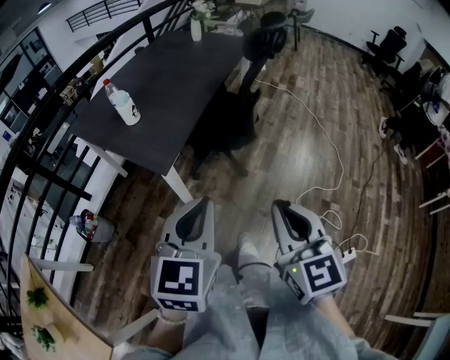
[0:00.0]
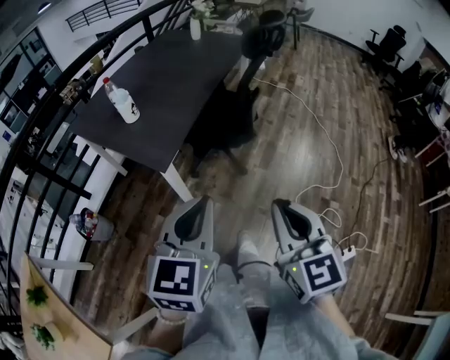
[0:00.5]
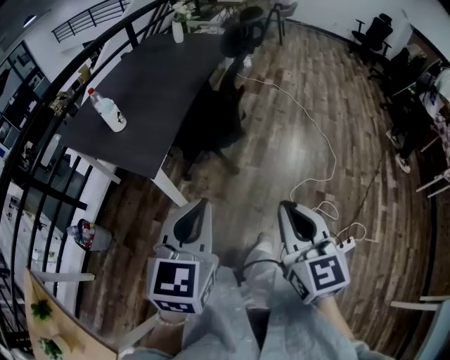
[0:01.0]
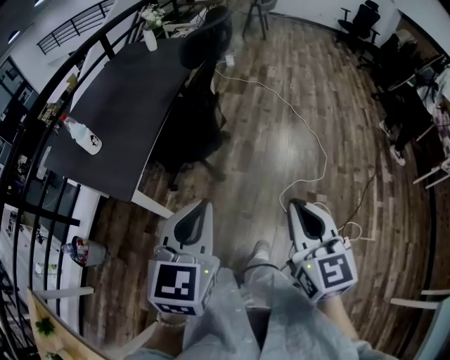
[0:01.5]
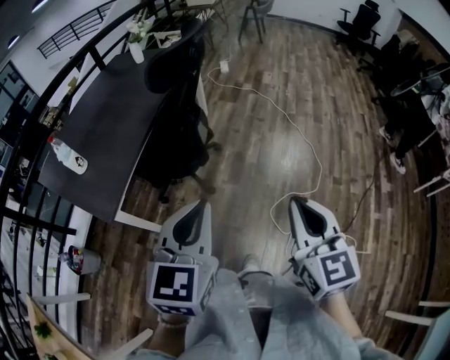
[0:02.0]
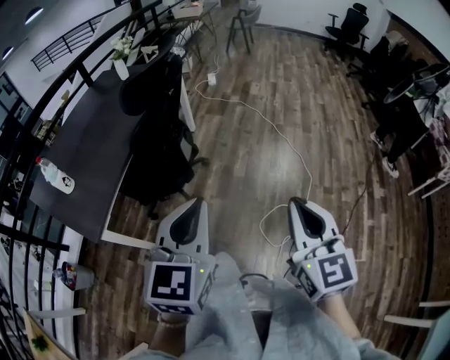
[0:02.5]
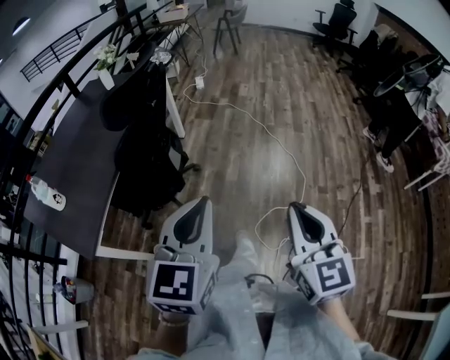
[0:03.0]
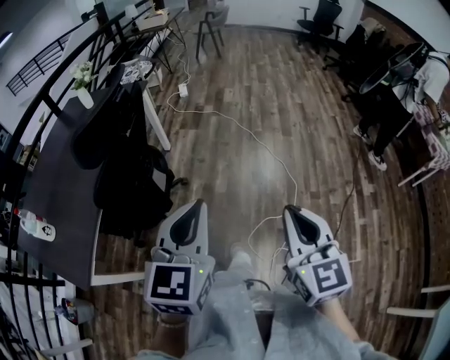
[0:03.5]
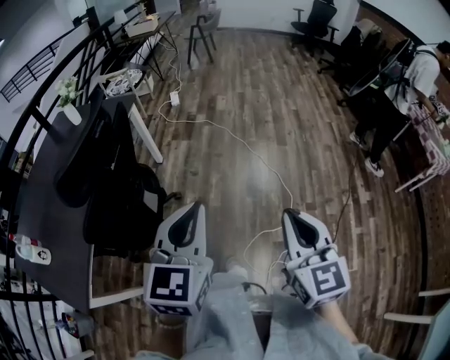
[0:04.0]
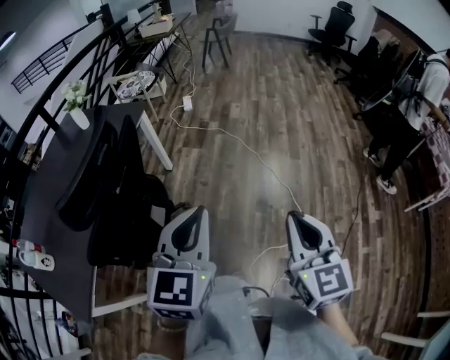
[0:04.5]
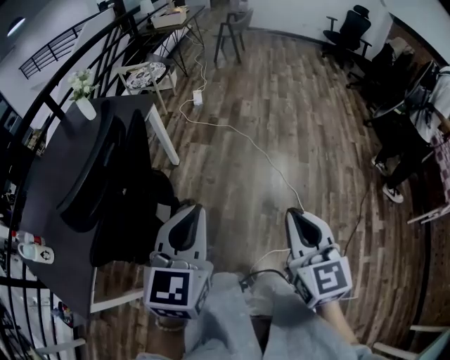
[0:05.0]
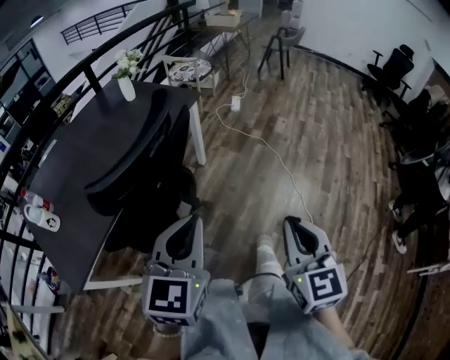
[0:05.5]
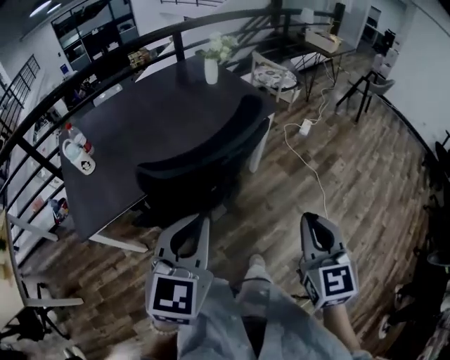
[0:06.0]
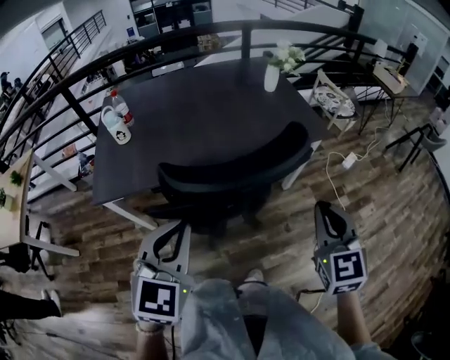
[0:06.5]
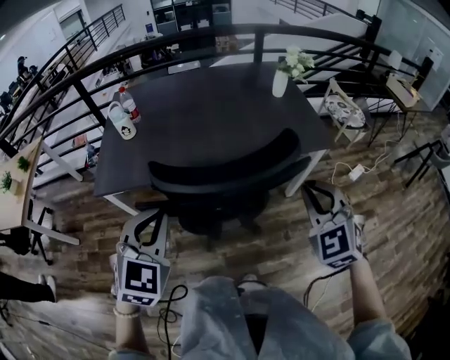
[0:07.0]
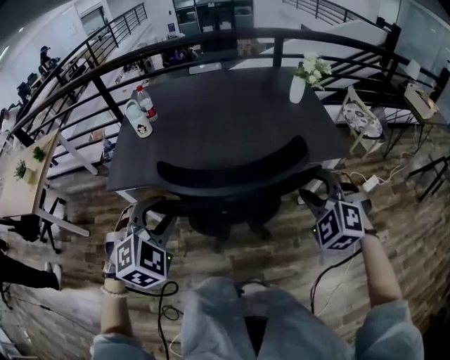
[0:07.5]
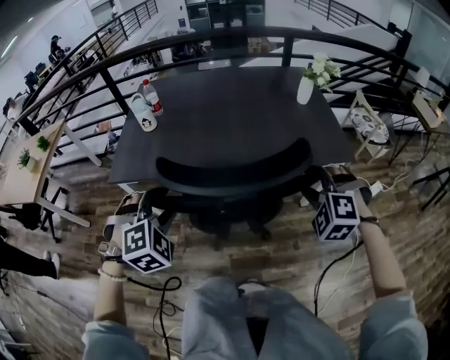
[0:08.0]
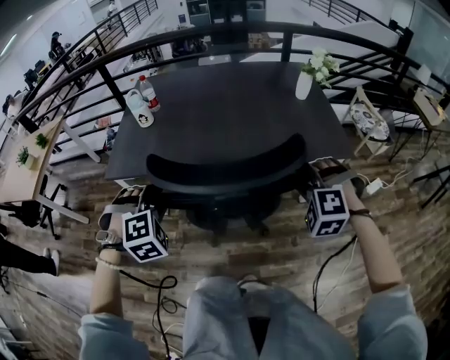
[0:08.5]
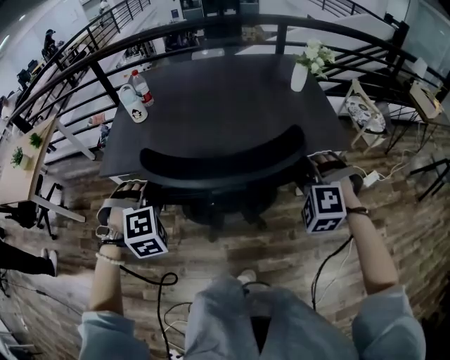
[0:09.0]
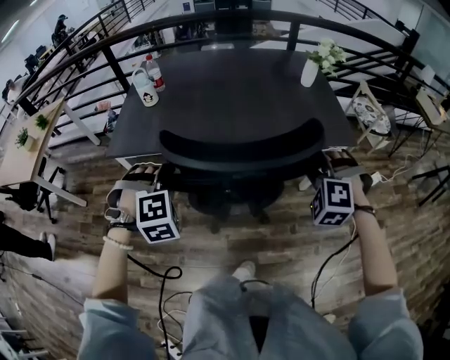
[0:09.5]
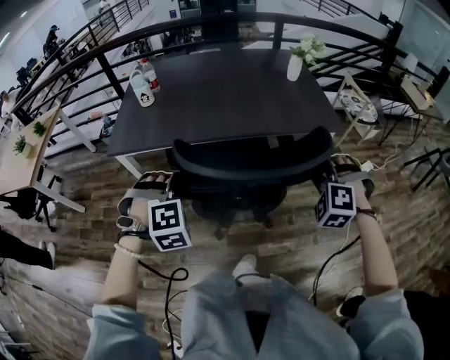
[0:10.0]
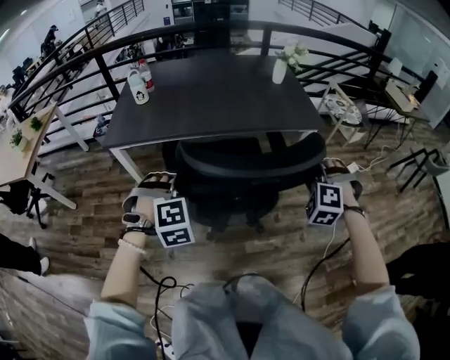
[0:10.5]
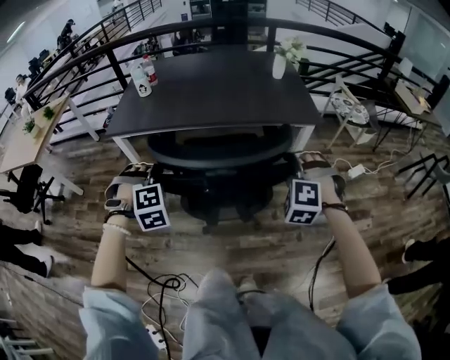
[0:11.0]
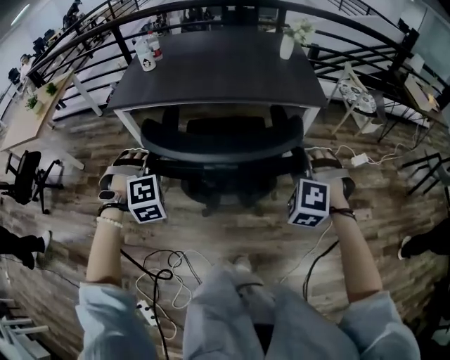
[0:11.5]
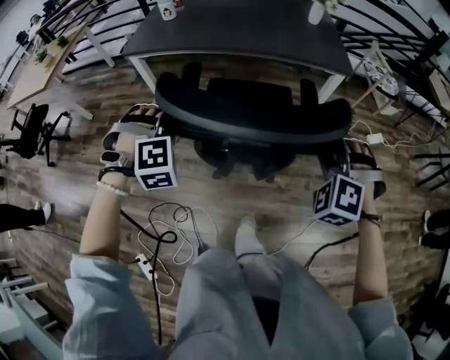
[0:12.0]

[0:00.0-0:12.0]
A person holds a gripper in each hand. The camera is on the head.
0:00.0 to 0:02.0: The grippers both shift to the right and forward by about 30 cm.
0:02.0 to 0:04.0: Both grippers travel together forward and to the right, approximately 30 cm.
0:04.0 to 0:06.0: The right gripper ends up roughly 35 cm from where it was, and rotates roughly 40 degrees. The left gripper changes place by roughly 20 cm, and rotates approximately 40 degrees.
0:06.0 to 0:08.0: The left gripper ends up roughly 15 cm from where it was, points its fingers approximately 30 degrees further downward, and opens up. The right gripper changes place by approximately 30 cm, rolls counterclockwise, seen from behind, by approximately 80 degrees, and opens its fingers.
0:08.0 to 0:10.0: The grippers both shift backward by about 10 cm.
0:10.0 to 0:12.0: Both grippers move backward, about 20 cm.

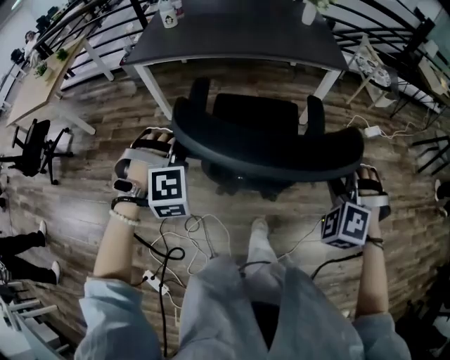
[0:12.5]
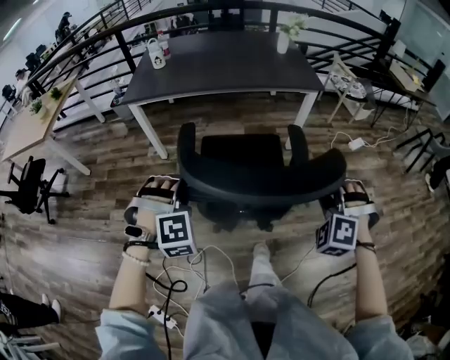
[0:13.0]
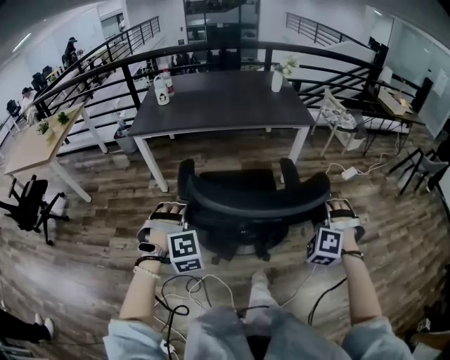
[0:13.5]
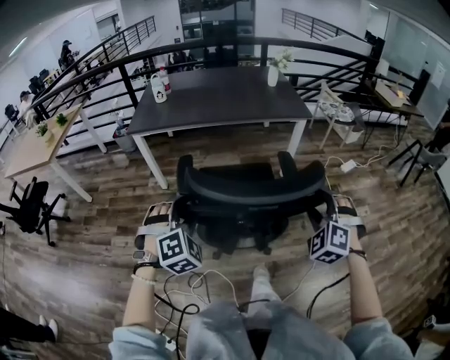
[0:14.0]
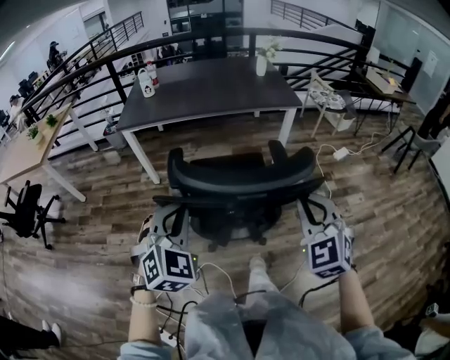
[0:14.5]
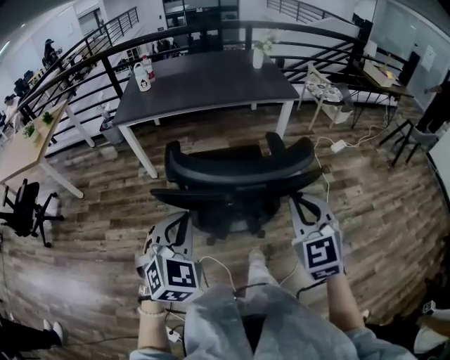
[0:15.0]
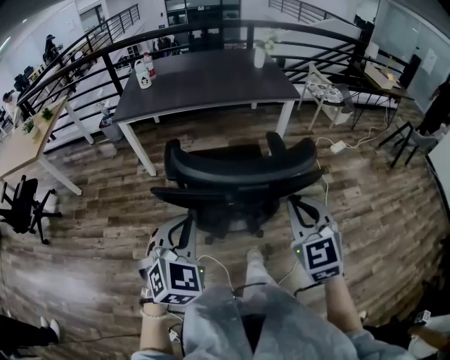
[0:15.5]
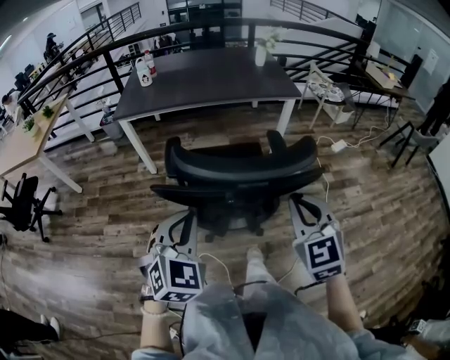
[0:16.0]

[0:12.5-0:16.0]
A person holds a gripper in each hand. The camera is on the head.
0:12.5 to 0:14.5: Both grippers move backward and upward, about 15 cm. The left gripper twists approximately 40 degrees counterclockwise, seen from behind, and closes up. The right gripper rolls clockwise, seen from behind, by roughly 40 degrees, and closes up.
0:14.5 to 0:16.0: The grippers make only small movements.

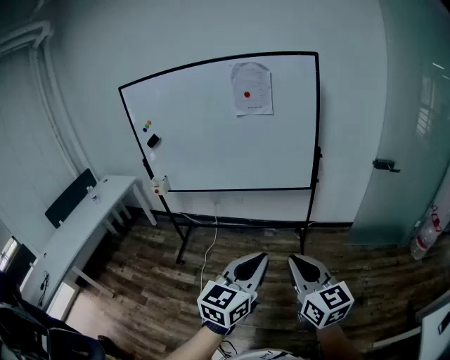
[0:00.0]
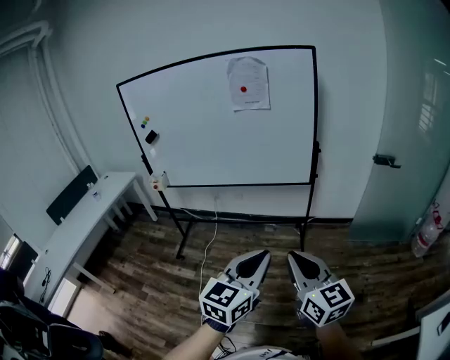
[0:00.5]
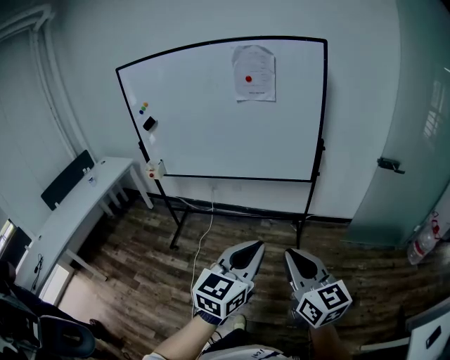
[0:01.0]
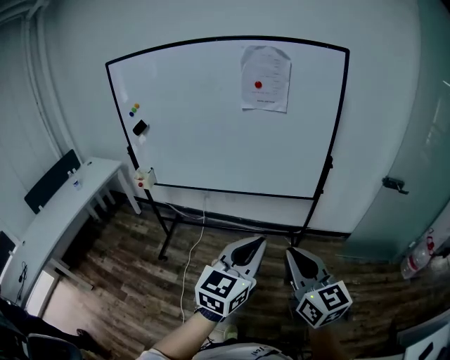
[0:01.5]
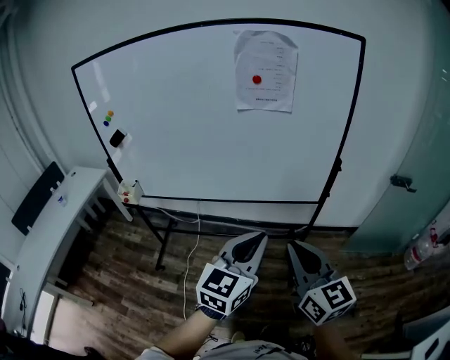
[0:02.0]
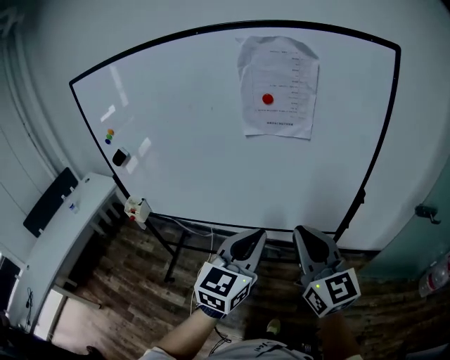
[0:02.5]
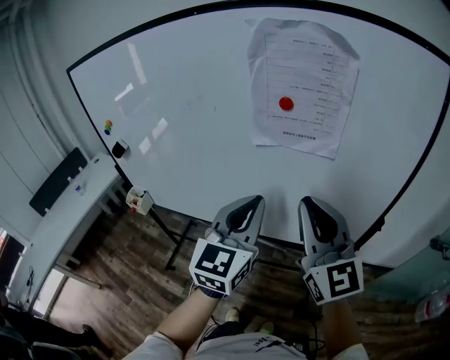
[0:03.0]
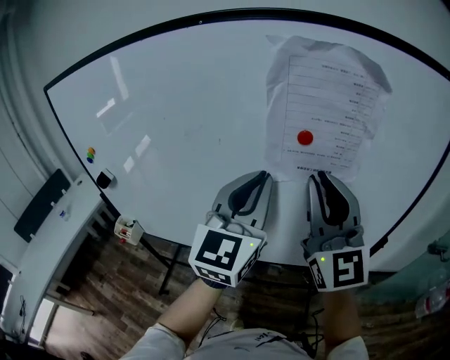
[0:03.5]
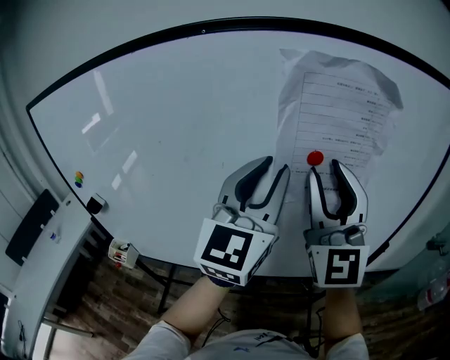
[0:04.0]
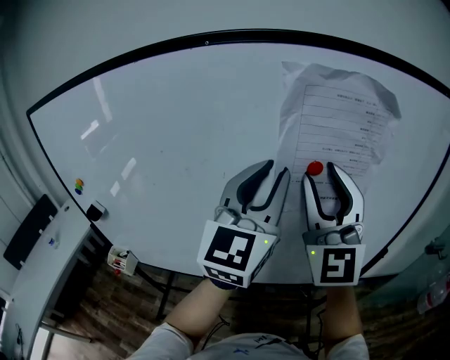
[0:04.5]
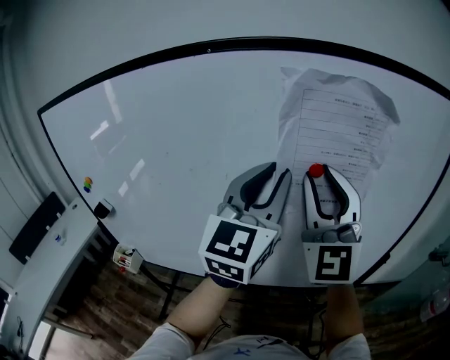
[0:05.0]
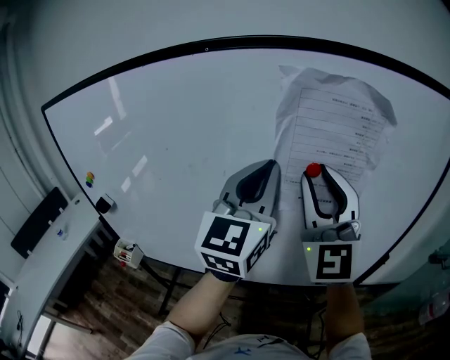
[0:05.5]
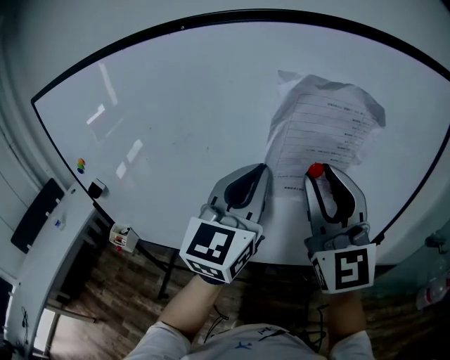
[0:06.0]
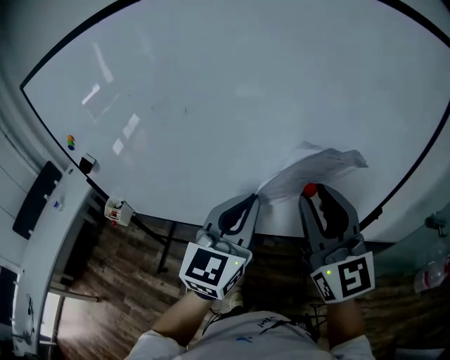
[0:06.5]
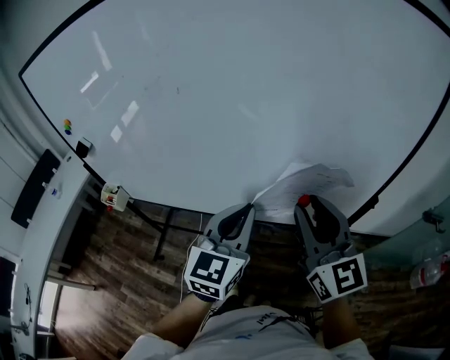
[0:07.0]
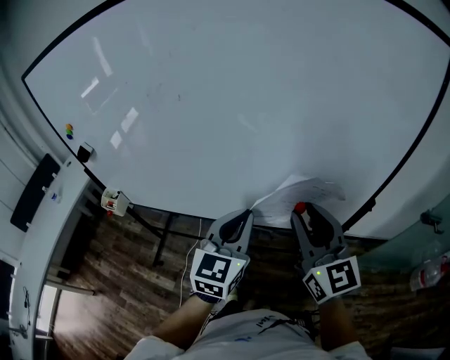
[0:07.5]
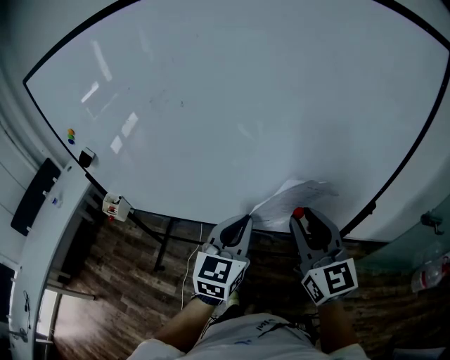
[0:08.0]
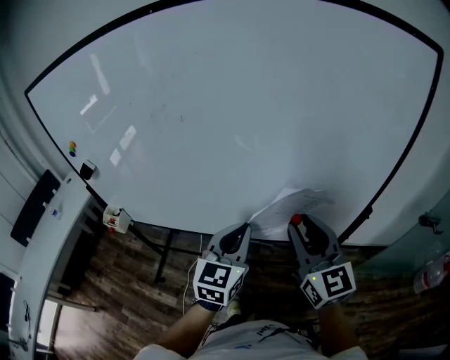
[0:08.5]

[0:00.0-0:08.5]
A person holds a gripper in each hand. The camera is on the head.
0:00.0 to 0:02.0: The two grippers go roughly 35 cm forward.
0:02.0 to 0:04.0: The two grippers travel together, forward, some 40 cm. Both grippers travel together upward, roughly 20 cm. The right gripper turns by about 50 degrees, and opens. Meanwhile the left gripper rotates approximately 30 degrees, and opens.
0:04.0 to 0:06.5: The left gripper moves downward and backward, roughly 15 cm, while the right gripper travels downward, backward and to the right by roughly 10 cm, and changes its angle by roughly 30 degrees.
0:06.5 to 0:08.5: The grippers both shift downward by about 10 cm.

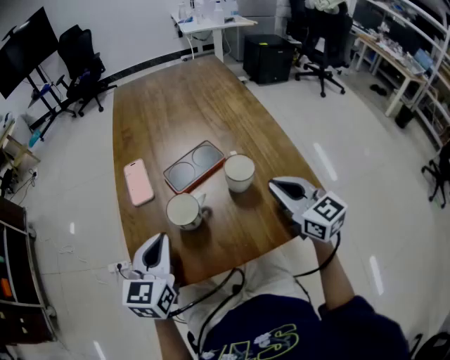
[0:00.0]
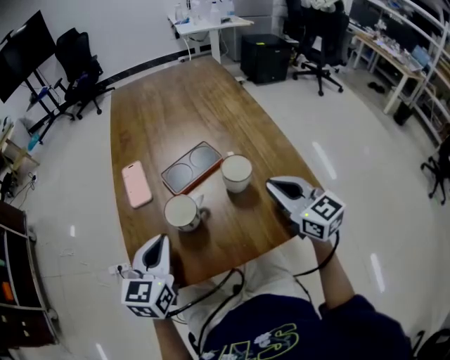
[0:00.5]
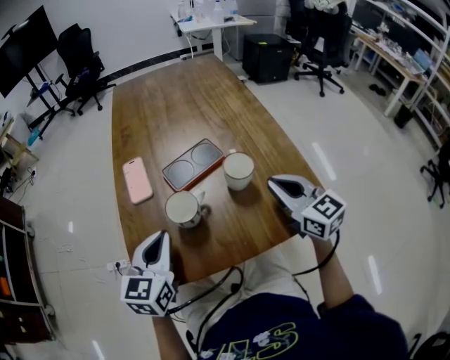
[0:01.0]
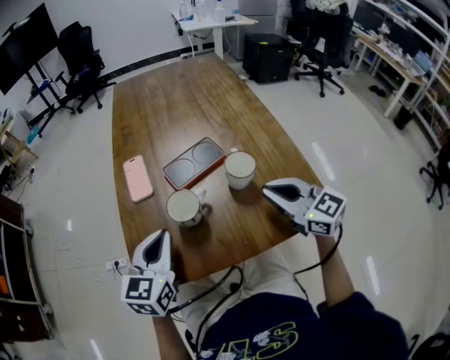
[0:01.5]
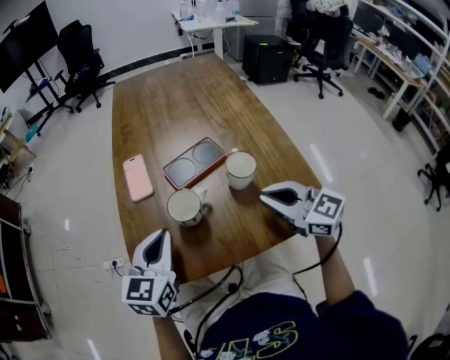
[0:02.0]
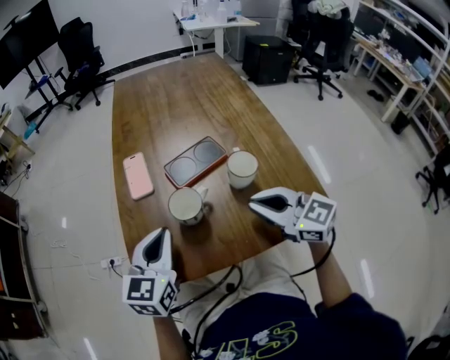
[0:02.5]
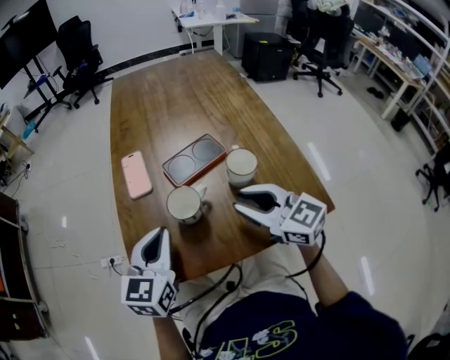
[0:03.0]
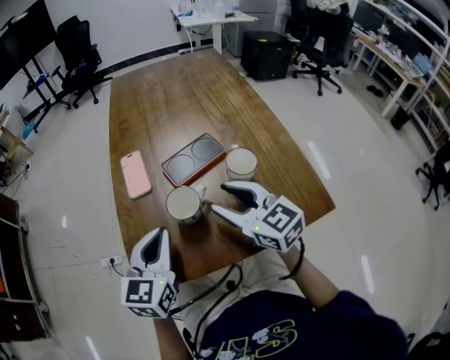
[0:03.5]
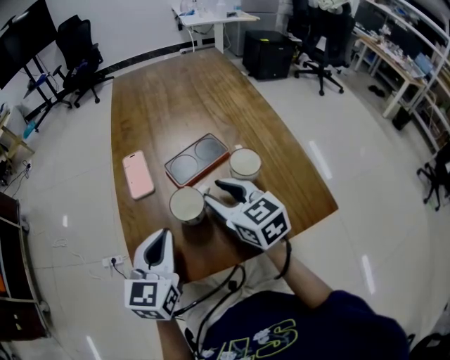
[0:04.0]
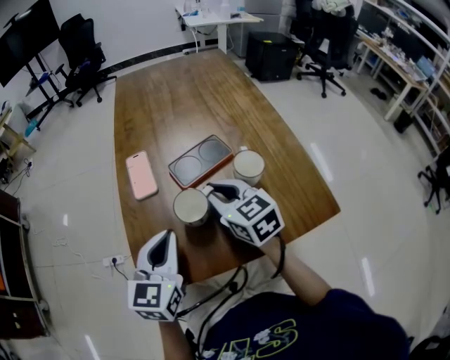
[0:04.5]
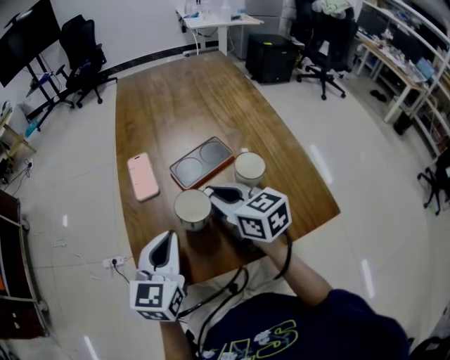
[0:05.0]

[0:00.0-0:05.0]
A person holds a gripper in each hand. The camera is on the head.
0:00.0 to 0:02.5: The right gripper travels to the left by approximately 10 cm, and rotates roughly 20 degrees.
0:02.5 to 0:05.0: The right gripper travels to the left and forward by some 15 cm, and changes its angle by about 20 degrees.
